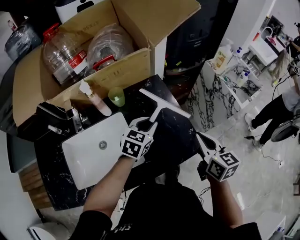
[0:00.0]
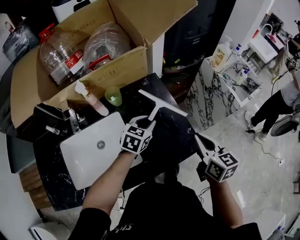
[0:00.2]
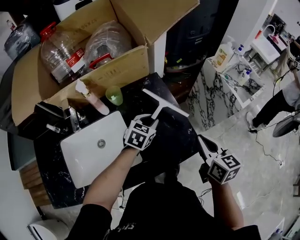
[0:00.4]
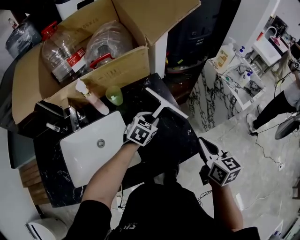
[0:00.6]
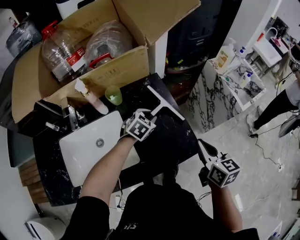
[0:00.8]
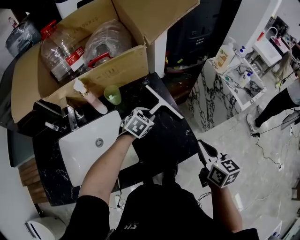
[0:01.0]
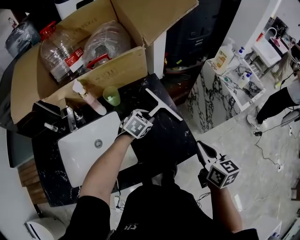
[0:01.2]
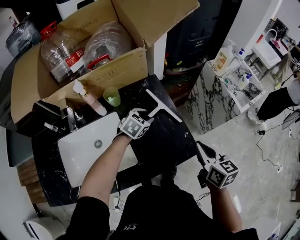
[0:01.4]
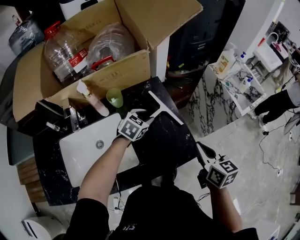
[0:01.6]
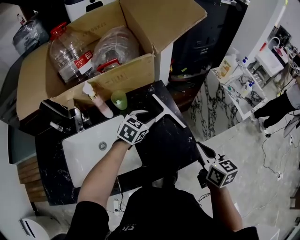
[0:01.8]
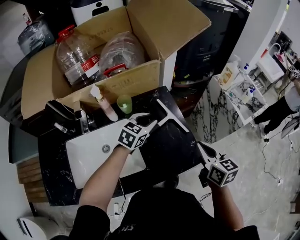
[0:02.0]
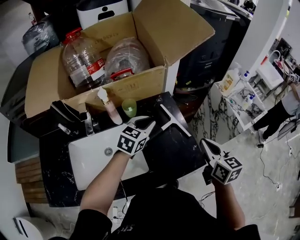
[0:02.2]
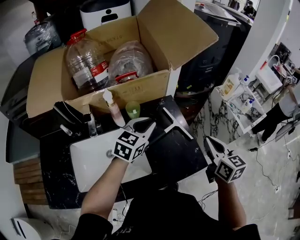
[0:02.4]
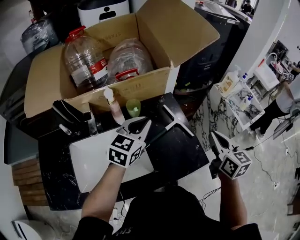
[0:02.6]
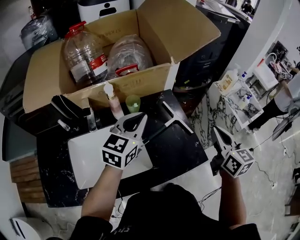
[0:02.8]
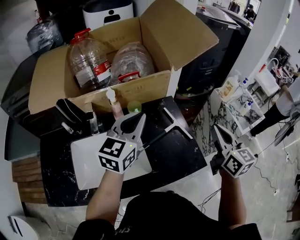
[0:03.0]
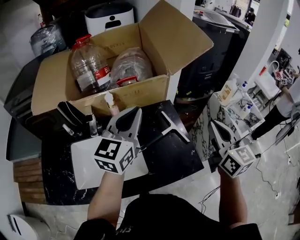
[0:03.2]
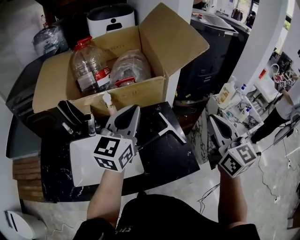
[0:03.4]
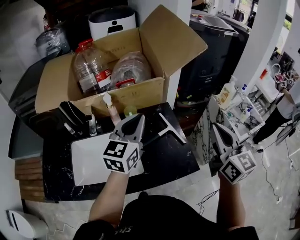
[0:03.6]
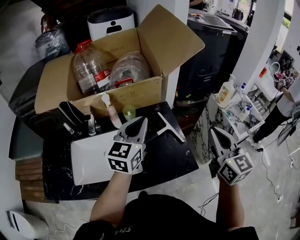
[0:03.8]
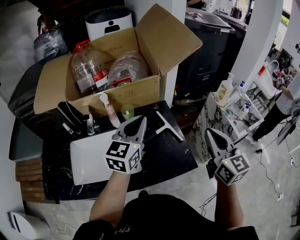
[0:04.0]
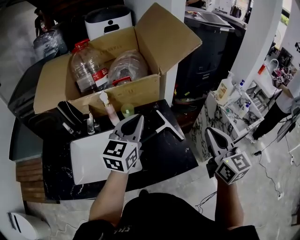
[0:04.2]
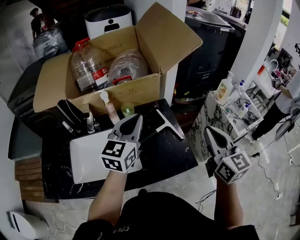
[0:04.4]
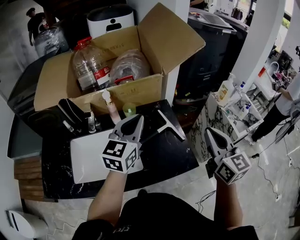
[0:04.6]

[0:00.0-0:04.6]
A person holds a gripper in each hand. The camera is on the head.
0.0 to 1.6 s: The left gripper is displaced downward and forward by roughly 10 cm.
1.6 to 3.0 s: The left gripper is displaced upward by approximately 25 cm, tilts its fingers approximately 40 degrees upward, and closes its fingers. Meanwhile the right gripper shifts roughly 15 cm upward, and swivels approximately 20 degrees.
3.0 to 4.6 s: The right gripper moves roughly 10 cm upward and comes back.

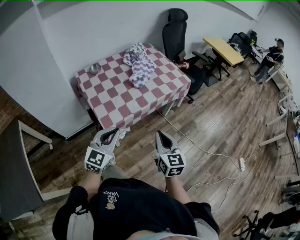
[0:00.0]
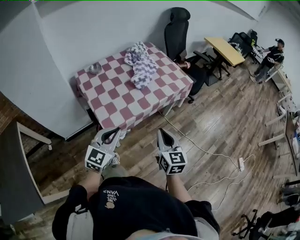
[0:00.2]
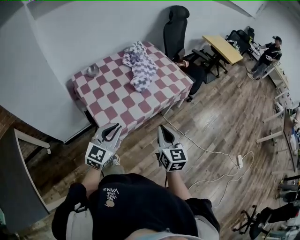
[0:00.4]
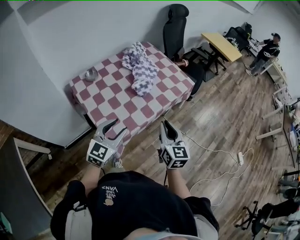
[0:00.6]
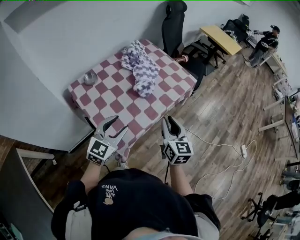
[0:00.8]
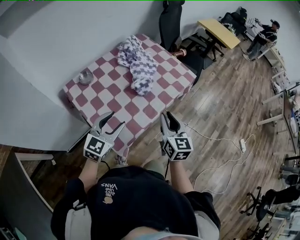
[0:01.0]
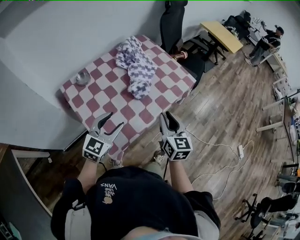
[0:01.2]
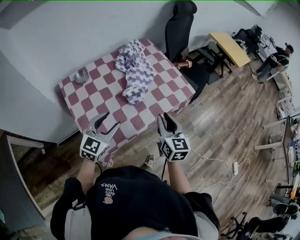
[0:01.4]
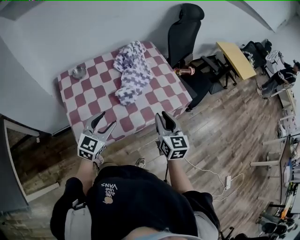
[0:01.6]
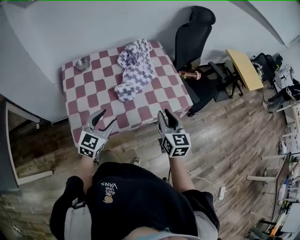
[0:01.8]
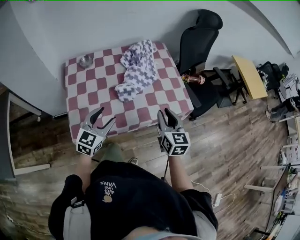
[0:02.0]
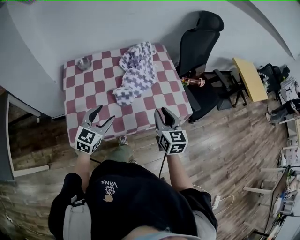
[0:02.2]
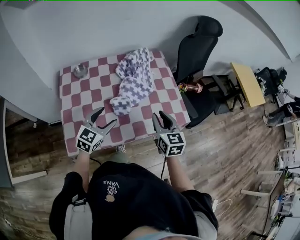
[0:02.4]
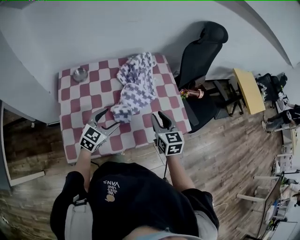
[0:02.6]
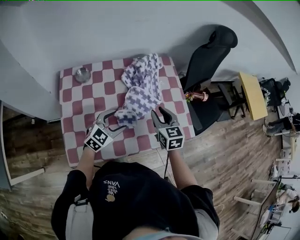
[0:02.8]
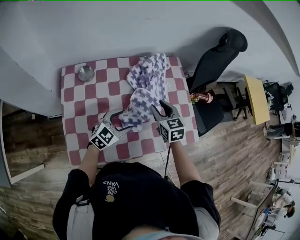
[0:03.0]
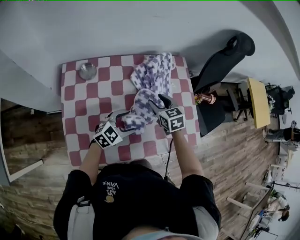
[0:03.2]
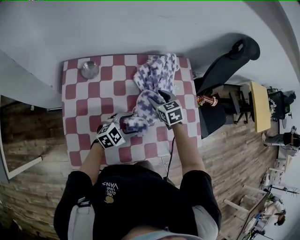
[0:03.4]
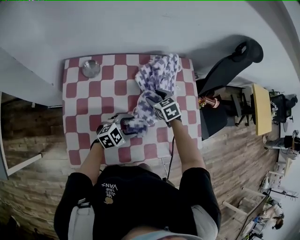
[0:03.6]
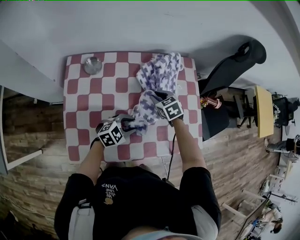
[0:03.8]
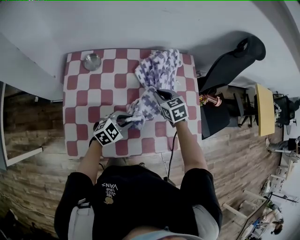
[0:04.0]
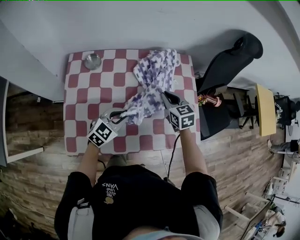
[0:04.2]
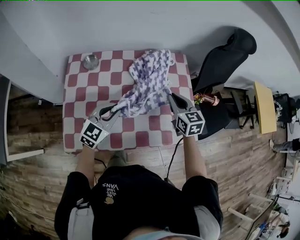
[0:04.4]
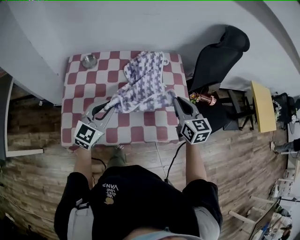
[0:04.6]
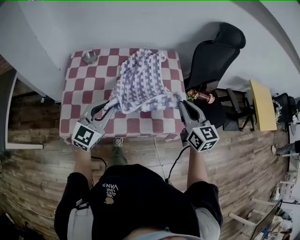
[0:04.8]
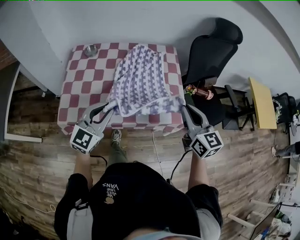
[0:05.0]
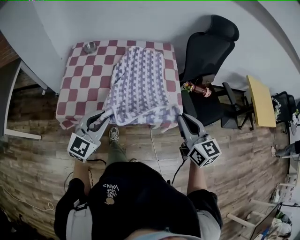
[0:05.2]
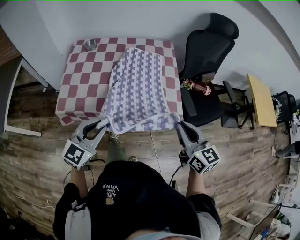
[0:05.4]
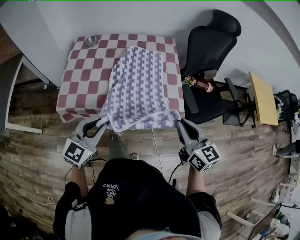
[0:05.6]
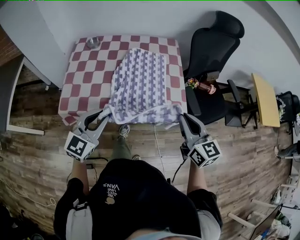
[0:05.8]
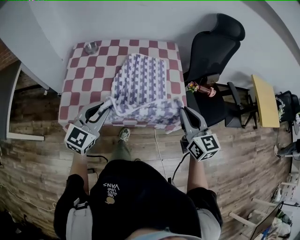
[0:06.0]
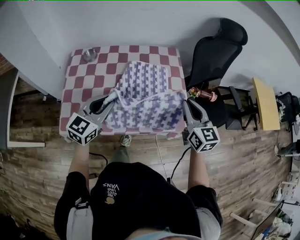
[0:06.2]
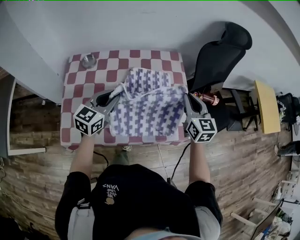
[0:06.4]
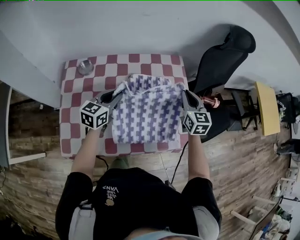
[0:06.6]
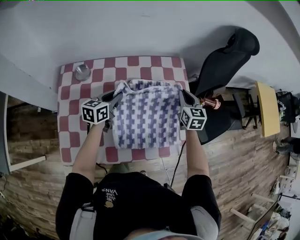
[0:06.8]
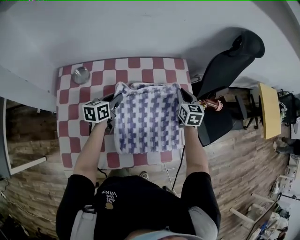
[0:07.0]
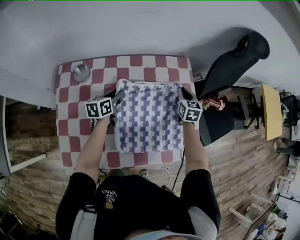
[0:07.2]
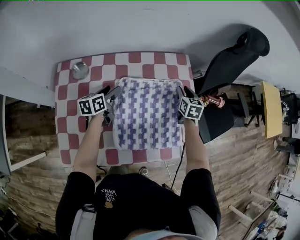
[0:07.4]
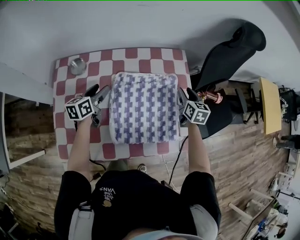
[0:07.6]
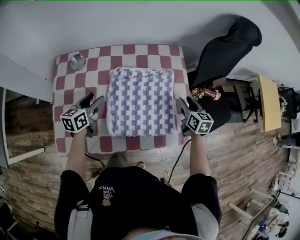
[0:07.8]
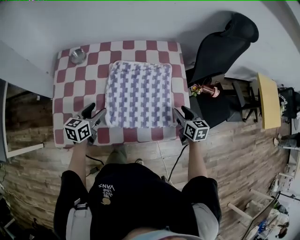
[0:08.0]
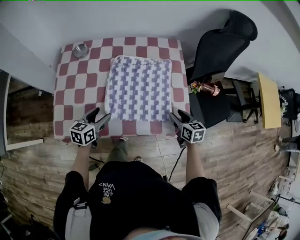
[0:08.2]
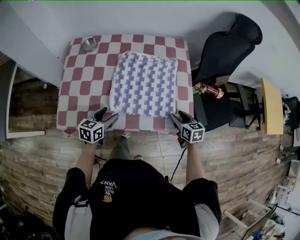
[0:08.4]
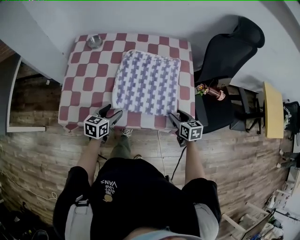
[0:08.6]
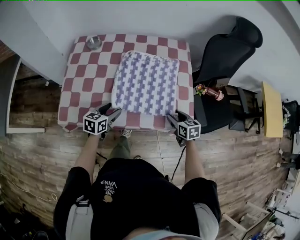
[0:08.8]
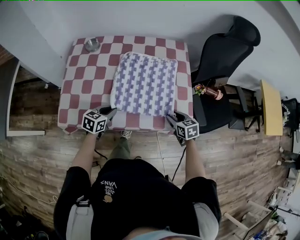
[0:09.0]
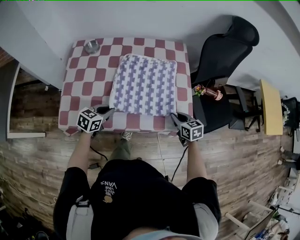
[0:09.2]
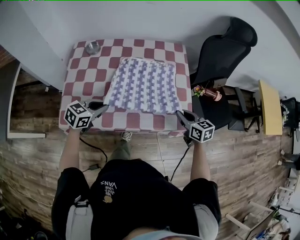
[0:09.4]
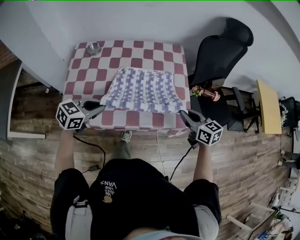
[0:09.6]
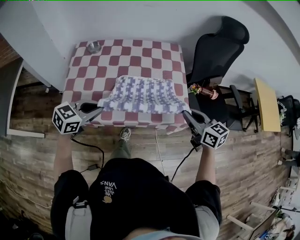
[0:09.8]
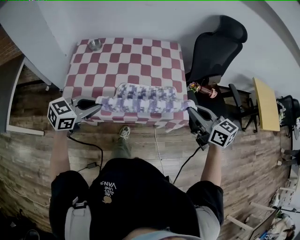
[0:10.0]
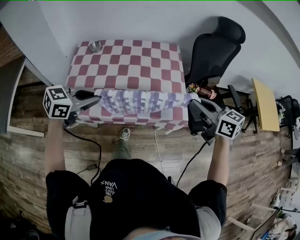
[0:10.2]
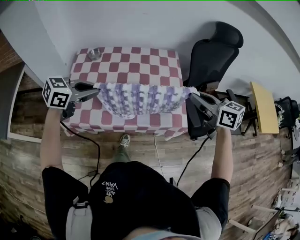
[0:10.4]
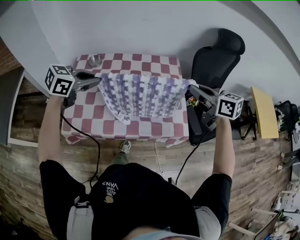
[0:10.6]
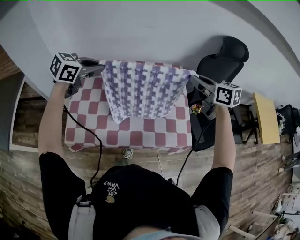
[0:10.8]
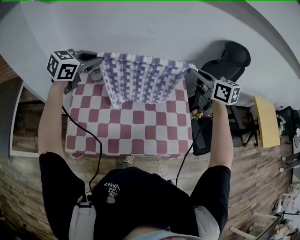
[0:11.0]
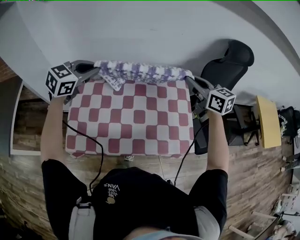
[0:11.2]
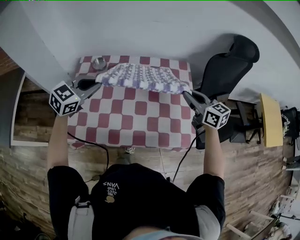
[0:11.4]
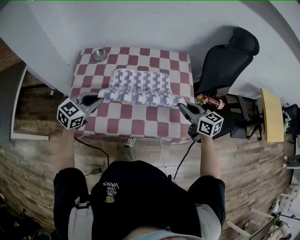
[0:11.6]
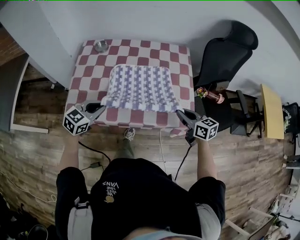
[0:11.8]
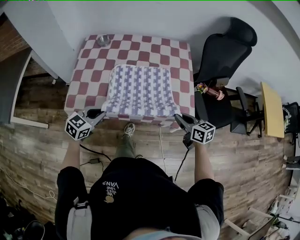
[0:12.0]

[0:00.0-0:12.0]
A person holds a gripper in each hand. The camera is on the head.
0.0 to 1.6 s: Both grippers move forward, roughly 30 cm. The left gripper opens up.
1.6 to 3.0 s: The right gripper shifts some 25 cm forward, and rotates some 30 degrees, while the left gripper travels forward and downward by some 20 cm.
3.0 to 4.4 s: The left gripper moves upward, approximately 5 cm, turns by roughly 20 degrees, and closes its fingers; the right gripper travels to the right by roughly 5 cm, goes downward and returns, some 10 cm each way, and closes up.
4.4 to 6.0 s: The left gripper is displaced backward and upward by about 15 cm; the right gripper shifts some 25 cm backward, to the right and upward.
6.0 to 7.6 s: The right gripper is displaced forward and downward by approximately 35 cm, swivels about 30 degrees, and opens up, while the left gripper moves forward, downward and to the left, about 35 cm, rolls counterclockwise, seen from behind, by about 50 degrees, and opens up.
7.6 to 9.0 s: The two grippers go about 25 cm backward. The left gripper turns by about 20 degrees, and closes up. Meanwhile the right gripper changes its angle by approximately 30 degrees.
9.0 to 10.4 s: Both grippers move upward, some 30 cm. The left gripper turns by about 30 degrees. The right gripper swivels approximately 30 degrees, and closes its fingers.
10.4 to 12.0 s: Both grippers travel together downward, approximately 20 cm. The left gripper reaches about 25 cm forward, then returns; the right gripper travels forward and back again, approximately 25 cm each way.

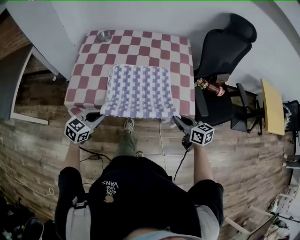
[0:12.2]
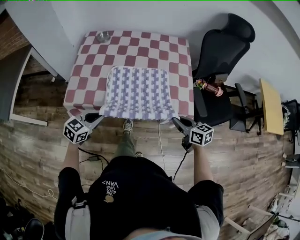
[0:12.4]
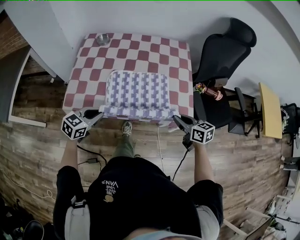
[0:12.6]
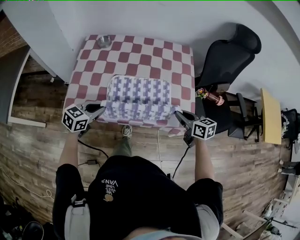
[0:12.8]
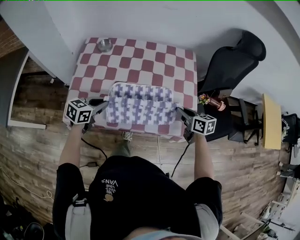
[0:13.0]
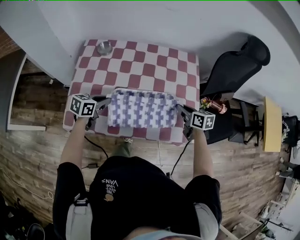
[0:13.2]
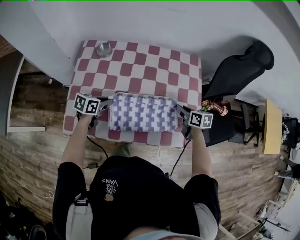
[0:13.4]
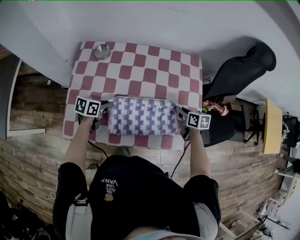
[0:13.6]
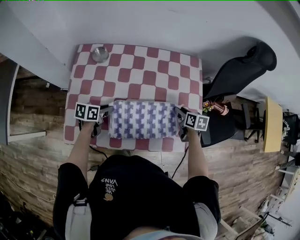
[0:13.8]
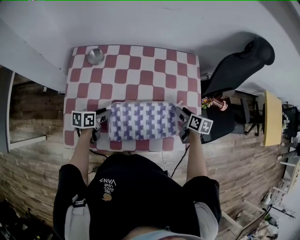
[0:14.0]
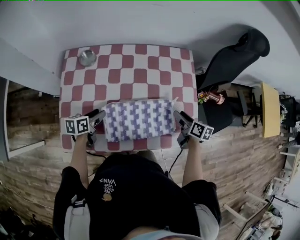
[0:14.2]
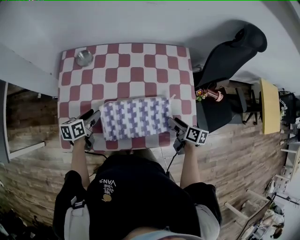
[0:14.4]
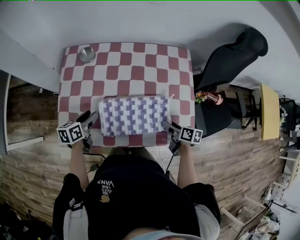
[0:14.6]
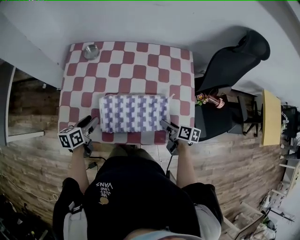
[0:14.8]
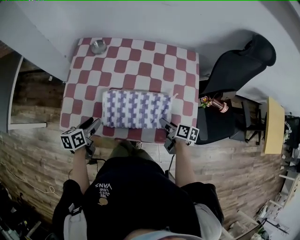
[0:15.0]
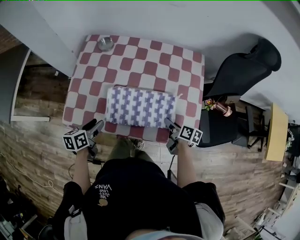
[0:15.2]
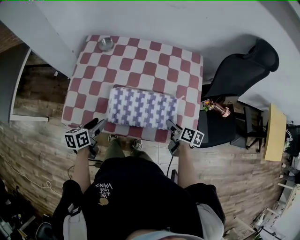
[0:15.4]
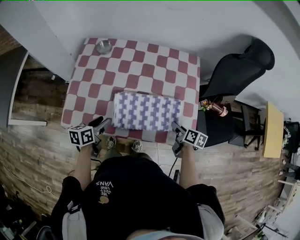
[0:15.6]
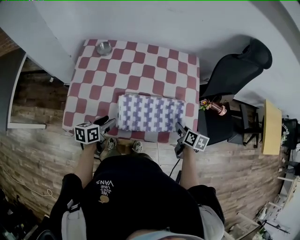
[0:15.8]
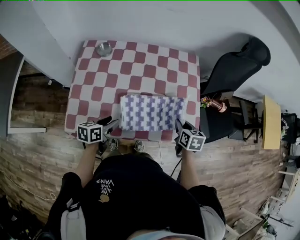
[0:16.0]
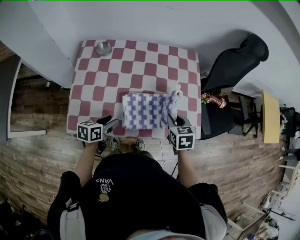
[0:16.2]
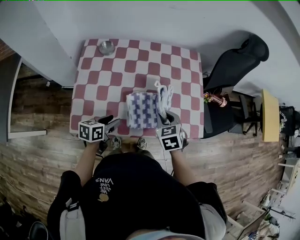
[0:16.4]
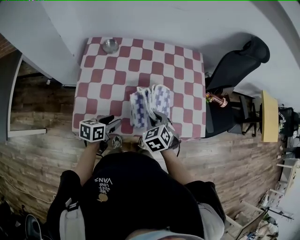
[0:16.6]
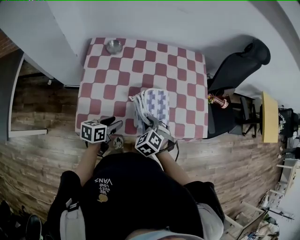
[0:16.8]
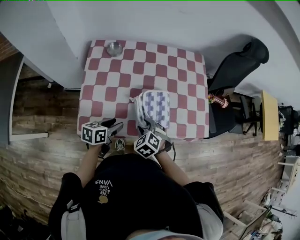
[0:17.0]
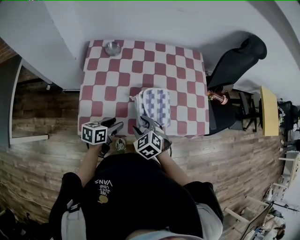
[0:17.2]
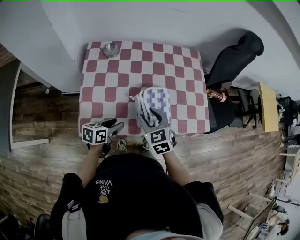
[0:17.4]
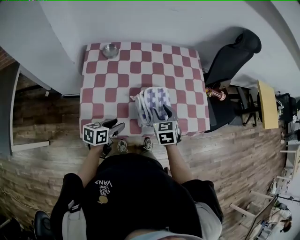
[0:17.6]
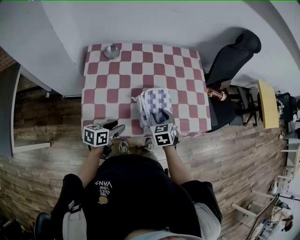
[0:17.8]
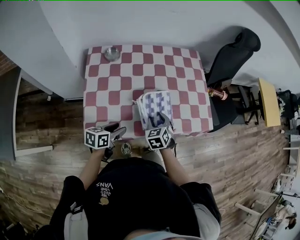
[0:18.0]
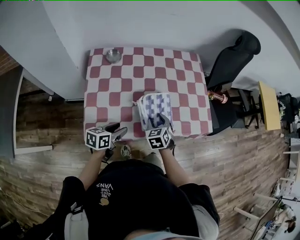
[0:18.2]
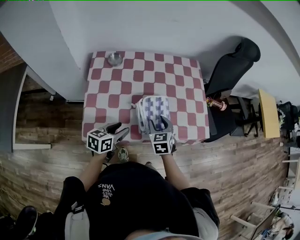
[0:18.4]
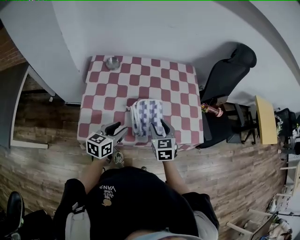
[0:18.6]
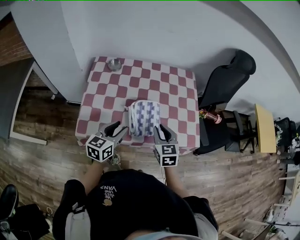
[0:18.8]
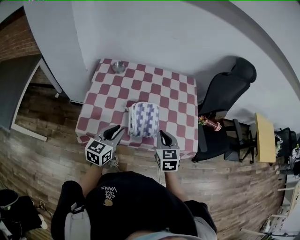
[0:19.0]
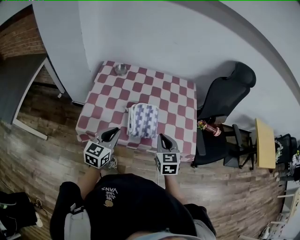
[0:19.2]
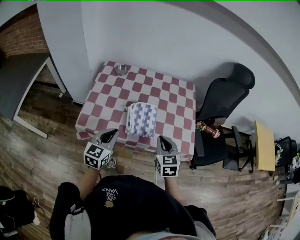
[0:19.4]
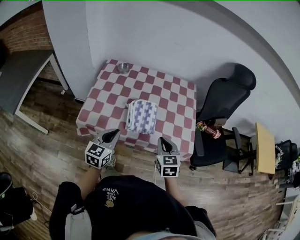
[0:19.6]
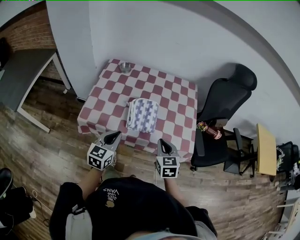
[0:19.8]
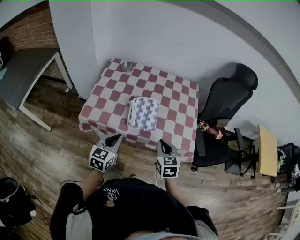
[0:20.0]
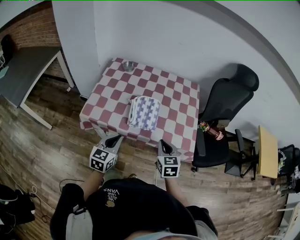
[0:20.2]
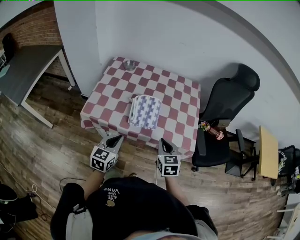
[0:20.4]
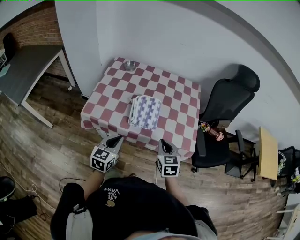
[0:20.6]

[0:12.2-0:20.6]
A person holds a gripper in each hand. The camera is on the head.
12.2 to 13.6 s: Both grippers travel together forward, some 25 cm. The left gripper changes its angle by about 40 degrees. Meanwhile the right gripper swivels approximately 20 degrees.
13.6 to 15.0 s: The two grippers go some 10 cm backward. The right gripper changes its angle by roughly 30 degrees, and opens its fingers, while the left gripper rotates approximately 30 degrees, and opens up.
15.0 to 16.4 s: The right gripper shifts by roughly 15 cm, and twists approximately 60 degrees counterclockwise, seen from behind; the left gripper rotates roughly 20 degrees.
16.4 to 17.8 s: The left gripper changes place by approximately 5 cm, while the right gripper moves to the left and downward, about 10 cm, and opens.
17.8 to 19.2 s: Both grippers move upward, some 15 cm. The right gripper closes its fingers. The left gripper turns by roughly 40 degrees, and closes up.
19.2 to 20.6 s: The two grippers go some 10 cm backward.
